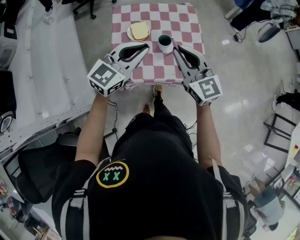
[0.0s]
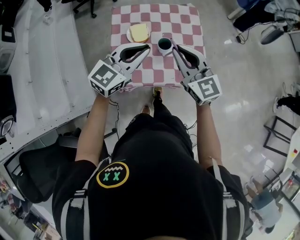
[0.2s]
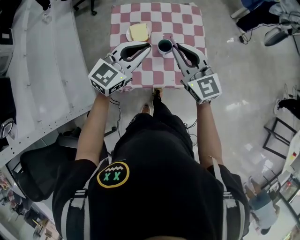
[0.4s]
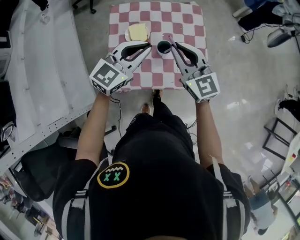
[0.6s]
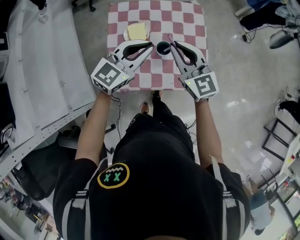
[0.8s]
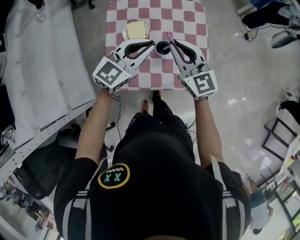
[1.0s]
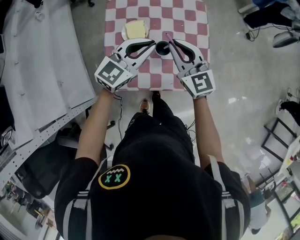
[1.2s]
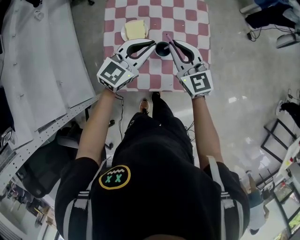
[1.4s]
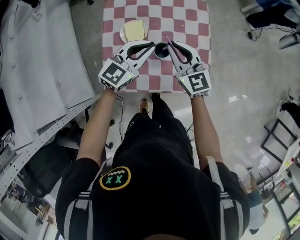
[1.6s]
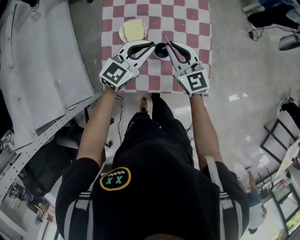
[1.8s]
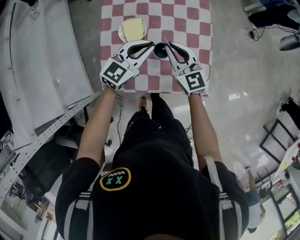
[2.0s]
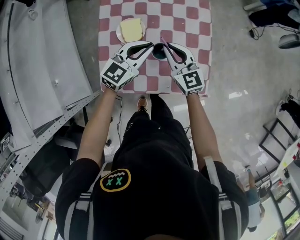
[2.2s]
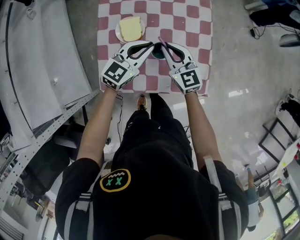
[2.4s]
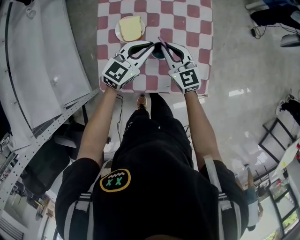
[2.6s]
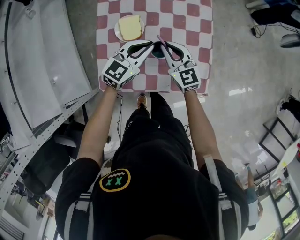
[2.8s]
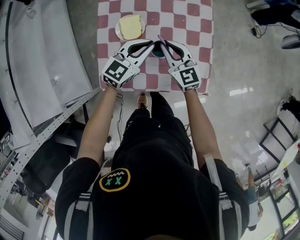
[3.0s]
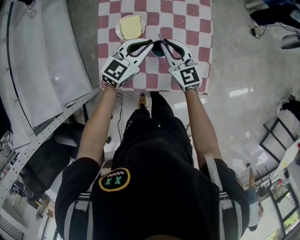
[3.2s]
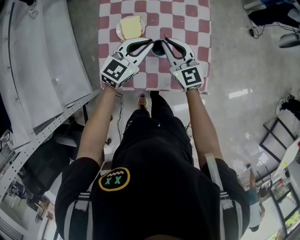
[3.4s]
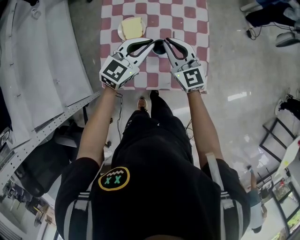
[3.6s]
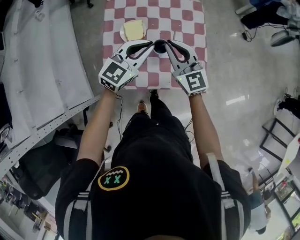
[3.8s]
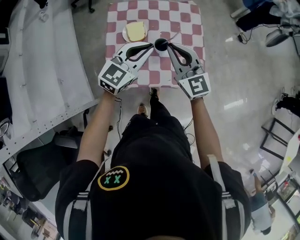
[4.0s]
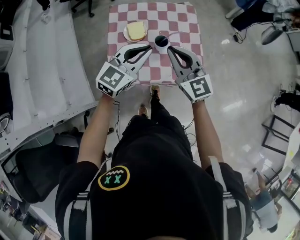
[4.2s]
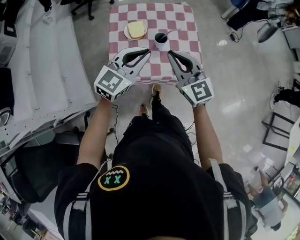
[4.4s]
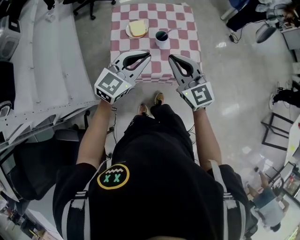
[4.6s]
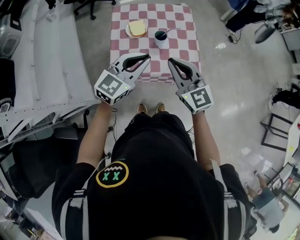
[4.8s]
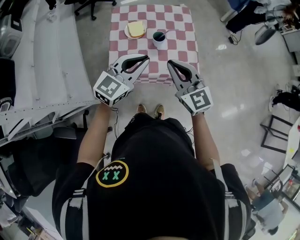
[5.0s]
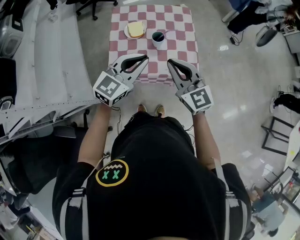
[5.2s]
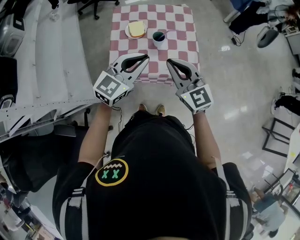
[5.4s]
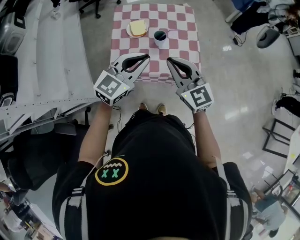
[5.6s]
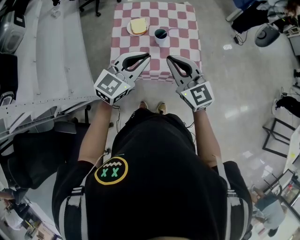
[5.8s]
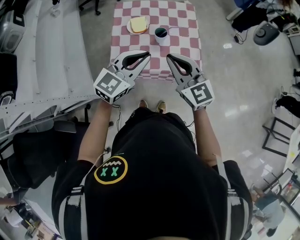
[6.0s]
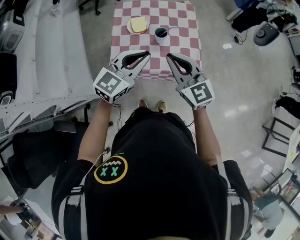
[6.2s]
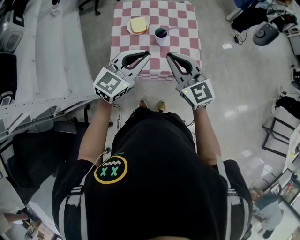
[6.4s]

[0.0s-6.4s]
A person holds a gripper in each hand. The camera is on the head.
0.0s to 1.6s: The grippers both shift forward and downward by some 20 cm.
1.6s to 3.2s: The two grippers go about 5 cm downward.
3.2s to 4.8s: The two grippers go approximately 35 cm backward and upward.
4.8s to 6.4s: The grippers move only a little.

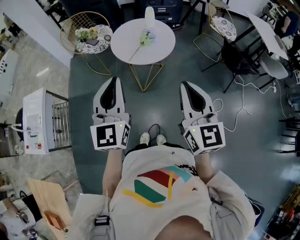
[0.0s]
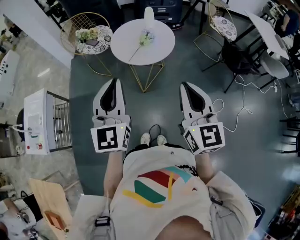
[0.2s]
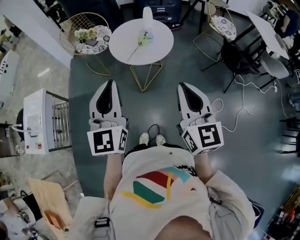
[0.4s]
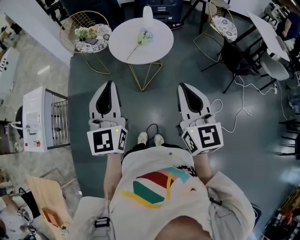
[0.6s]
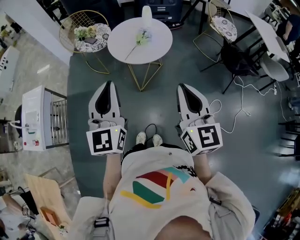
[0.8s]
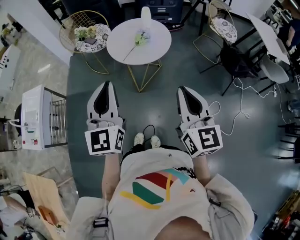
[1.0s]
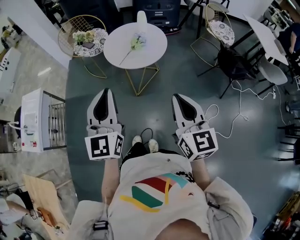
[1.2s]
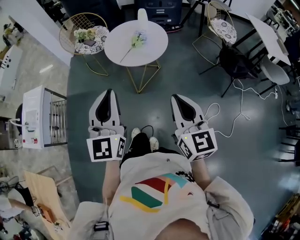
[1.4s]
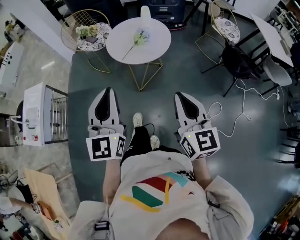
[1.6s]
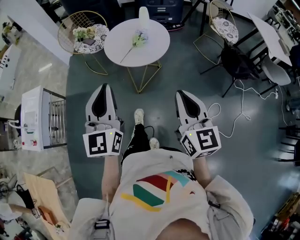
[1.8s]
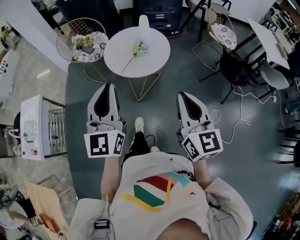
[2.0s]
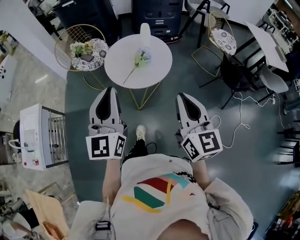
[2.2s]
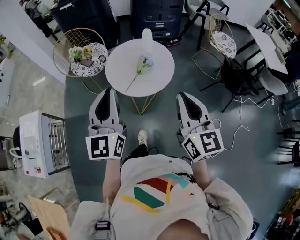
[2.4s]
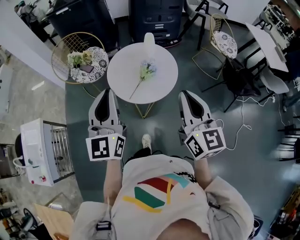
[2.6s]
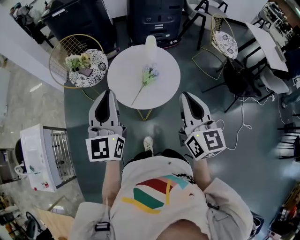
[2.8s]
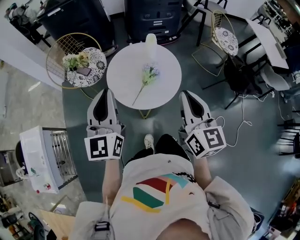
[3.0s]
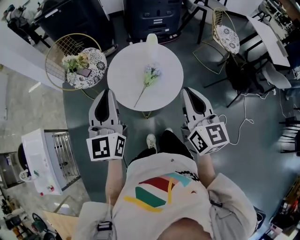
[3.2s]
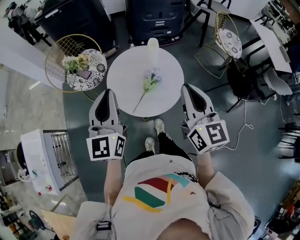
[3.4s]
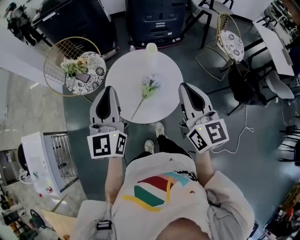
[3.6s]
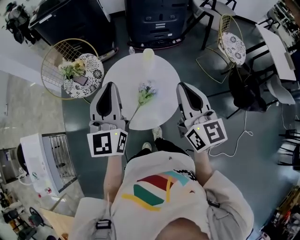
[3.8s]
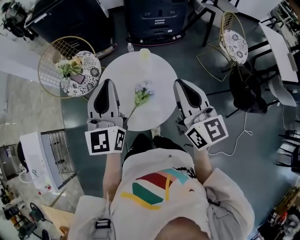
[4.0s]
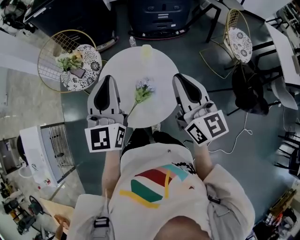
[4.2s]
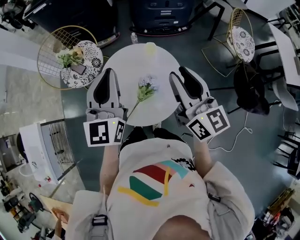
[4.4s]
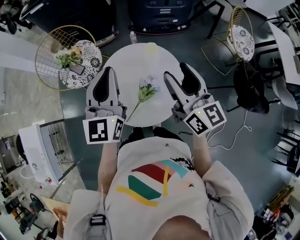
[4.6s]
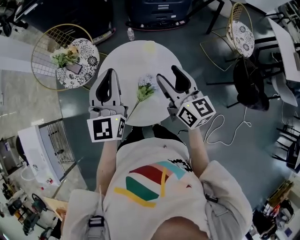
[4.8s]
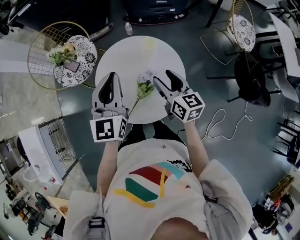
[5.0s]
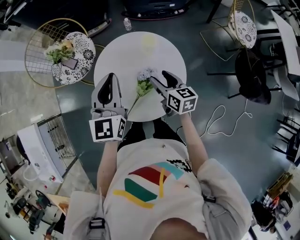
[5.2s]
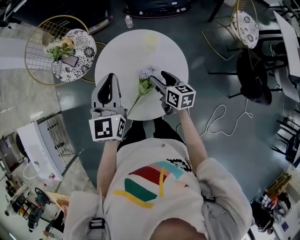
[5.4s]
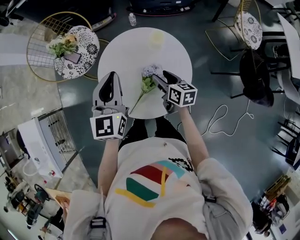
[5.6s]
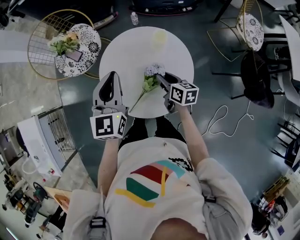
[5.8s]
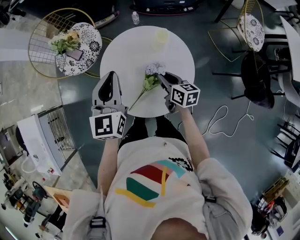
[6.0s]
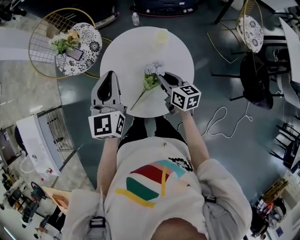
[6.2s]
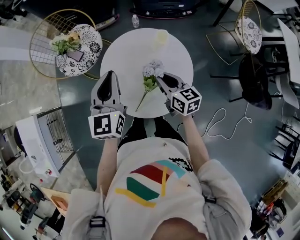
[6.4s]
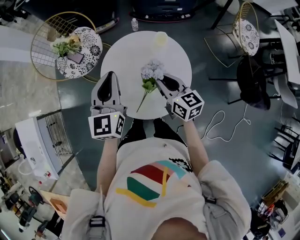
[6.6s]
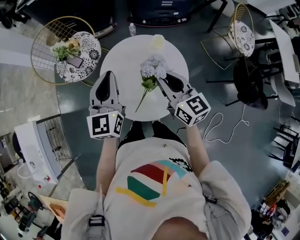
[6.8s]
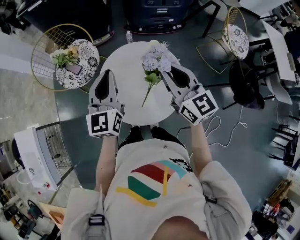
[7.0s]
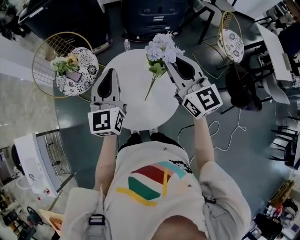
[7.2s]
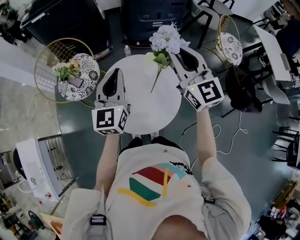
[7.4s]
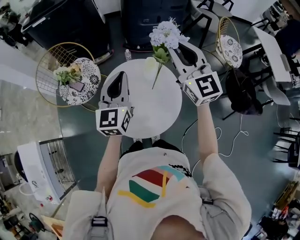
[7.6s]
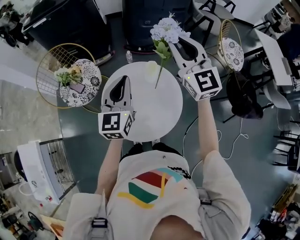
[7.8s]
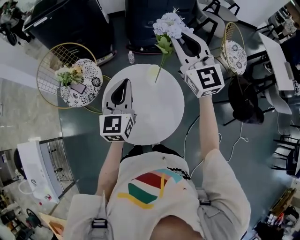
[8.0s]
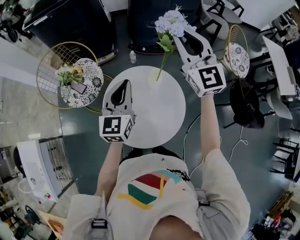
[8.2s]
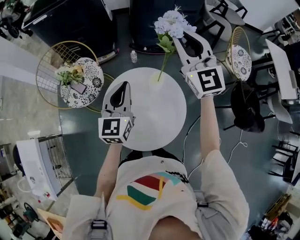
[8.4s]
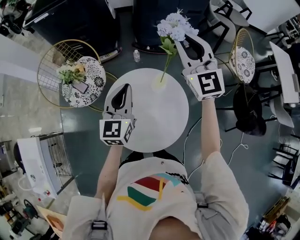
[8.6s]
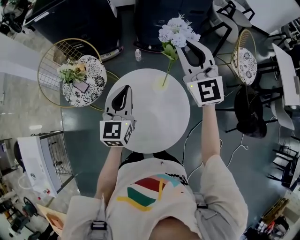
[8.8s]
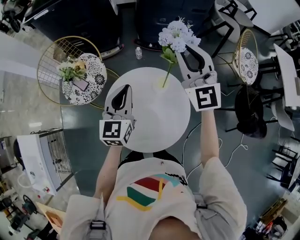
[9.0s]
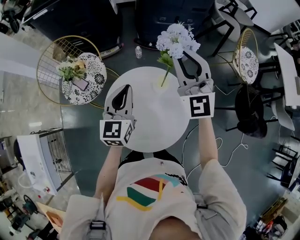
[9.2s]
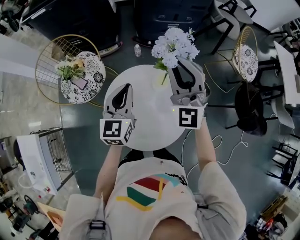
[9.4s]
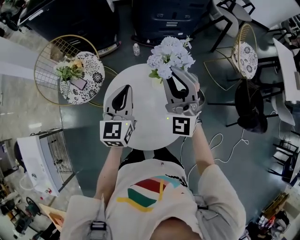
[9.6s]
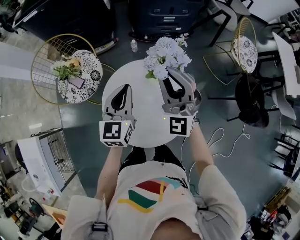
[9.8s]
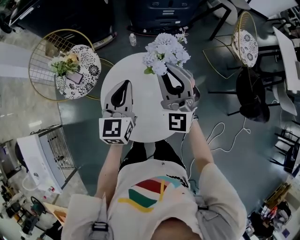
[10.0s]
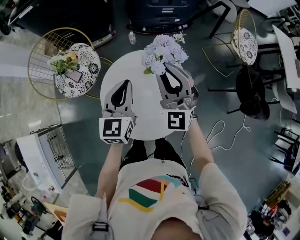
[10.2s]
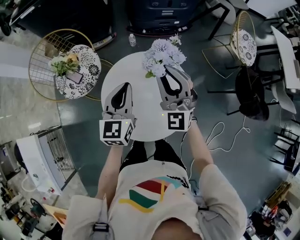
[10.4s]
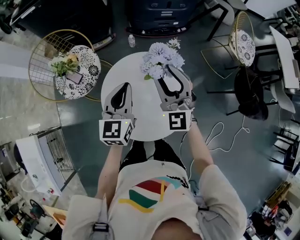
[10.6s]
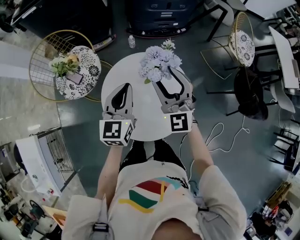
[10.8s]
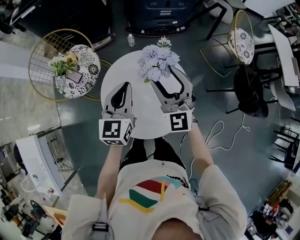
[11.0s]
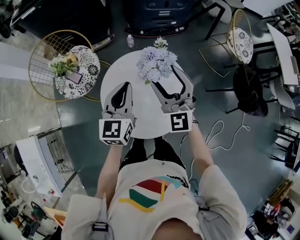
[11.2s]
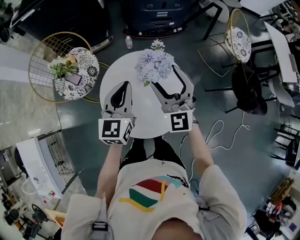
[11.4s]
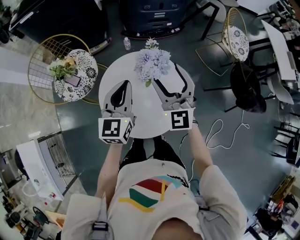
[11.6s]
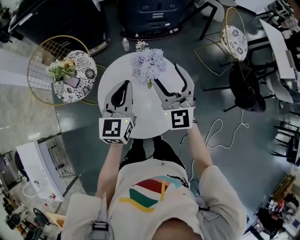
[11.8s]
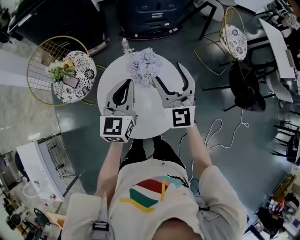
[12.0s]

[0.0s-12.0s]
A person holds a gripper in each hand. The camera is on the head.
0.0s to 1.6s: The grippers both shift to the right by about 5 cm.
1.6s to 3.0s: The two grippers go some 30 cm forward.
3.0s to 4.4s: The right gripper heads forward, covering approximately 25 cm. The left gripper is displaced forward and to the right by roughly 25 cm.
4.4s to 6.0s: The left gripper goes roughly 15 cm downward. The right gripper heads downward, covering some 30 cm, tips its fingers downward by some 30 degrees, and opens, then closes again.
6.0s to 7.6s: The left gripper shifts about 10 cm upward and to the right. The right gripper shifts approximately 35 cm upward, and rotates around the line of its fingers by roughly 50 degrees, counterclockwise from behind.
7.6s to 9.0s: The left gripper is displaced forward and downward by approximately 10 cm. Meanwhile the right gripper travels forward by about 10 cm.
9.0s to 10.4s: The right gripper is displaced downward and backward by about 15 cm; the left gripper changes place by roughly 5 cm.
10.4s to 12.0s: The right gripper opens.

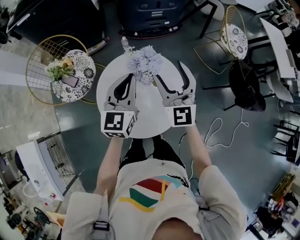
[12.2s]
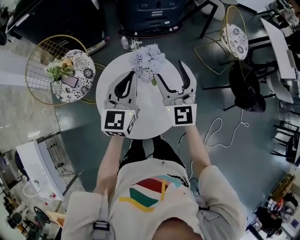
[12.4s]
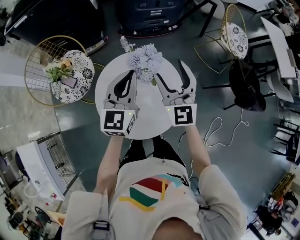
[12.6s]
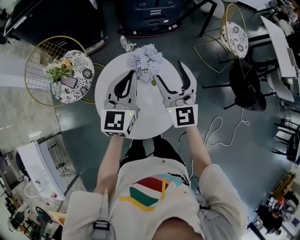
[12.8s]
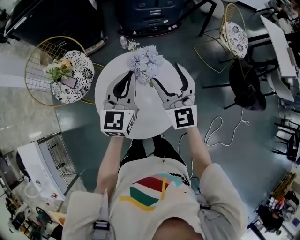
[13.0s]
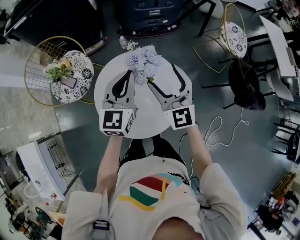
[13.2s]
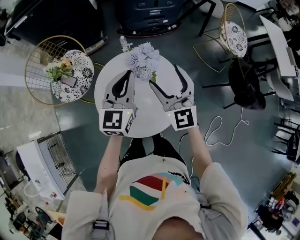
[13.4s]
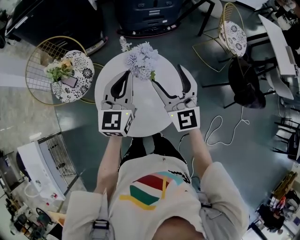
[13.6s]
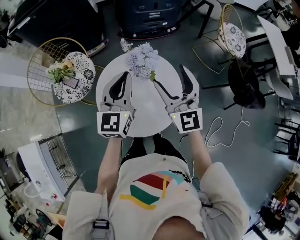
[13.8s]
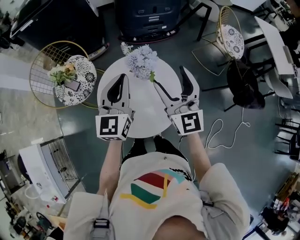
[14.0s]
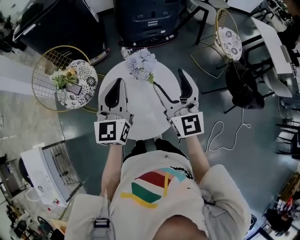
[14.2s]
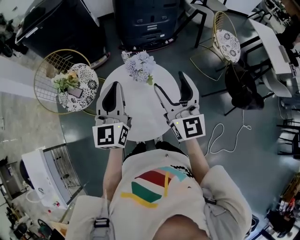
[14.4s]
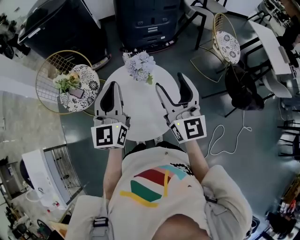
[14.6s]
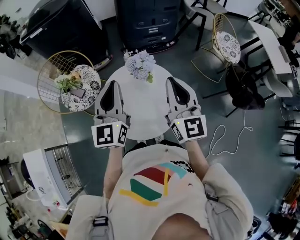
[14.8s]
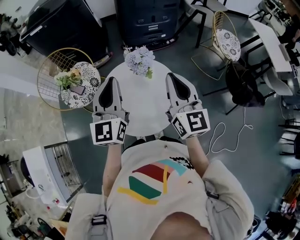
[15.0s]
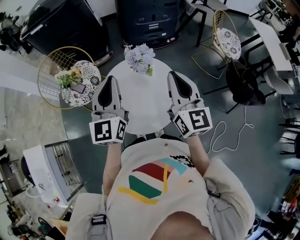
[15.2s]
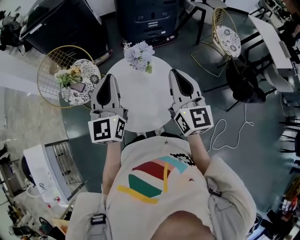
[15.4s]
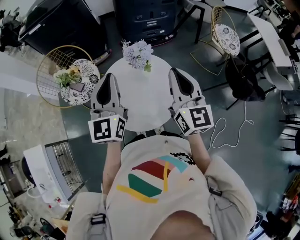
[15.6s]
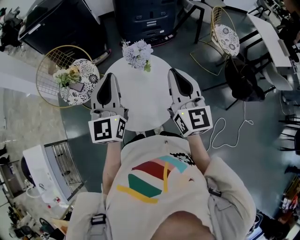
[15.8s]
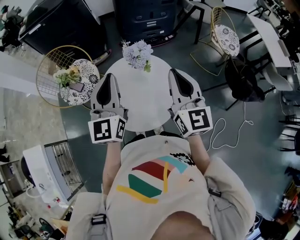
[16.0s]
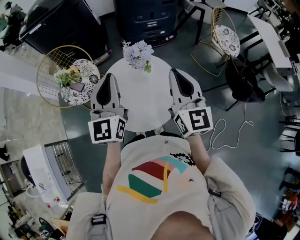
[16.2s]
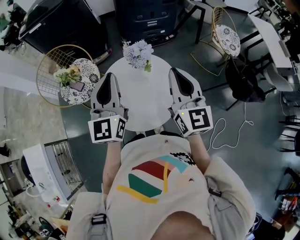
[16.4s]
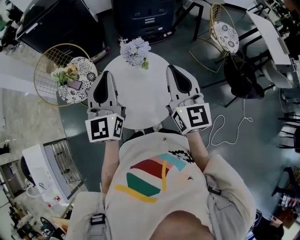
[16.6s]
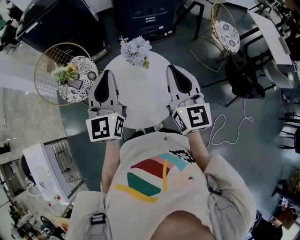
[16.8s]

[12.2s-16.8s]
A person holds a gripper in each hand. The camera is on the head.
12.2s to 13.8s: There are only small adjustments of the grippers.
13.8s to 15.2s: The right gripper shifts approximately 10 cm backward and upward, and closes. The left gripper travels upward and backward by roughly 10 cm.
15.2s to 16.8s: The grippers stay close to where they were, moving slightly.

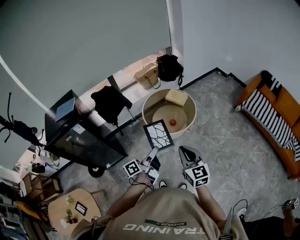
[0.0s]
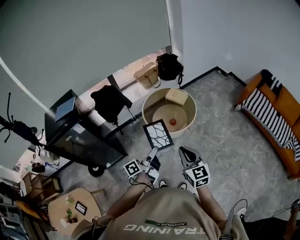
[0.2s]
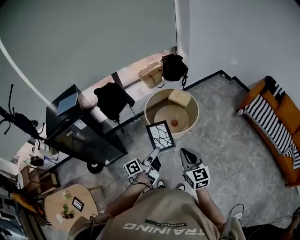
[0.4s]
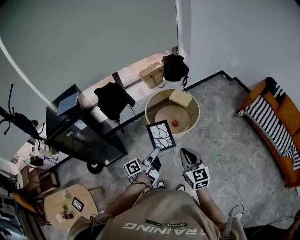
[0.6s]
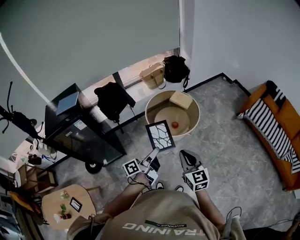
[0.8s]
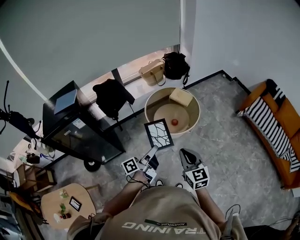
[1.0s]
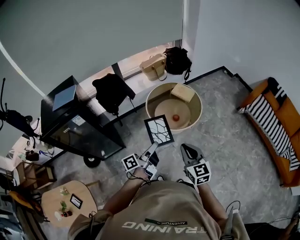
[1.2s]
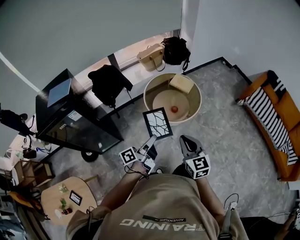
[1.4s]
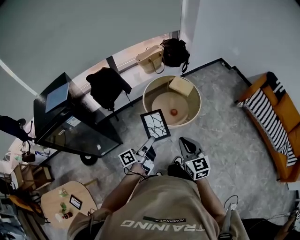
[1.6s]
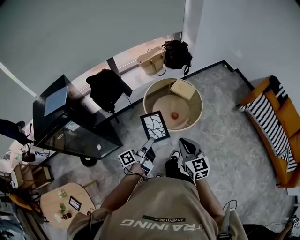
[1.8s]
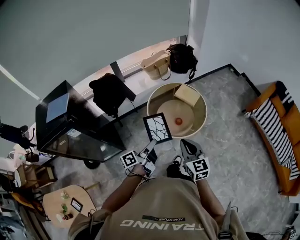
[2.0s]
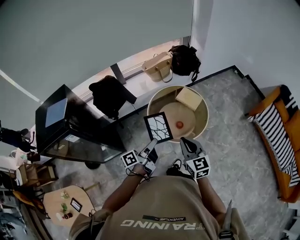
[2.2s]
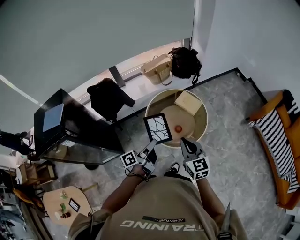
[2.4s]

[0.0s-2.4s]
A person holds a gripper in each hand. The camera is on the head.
0.0s to 1.2s: The right gripper shifts by roughly 5 cm; the left gripper heads to the left, covering approximately 5 cm.
1.2s to 2.4s: The two grippers go approximately 25 cm forward.
